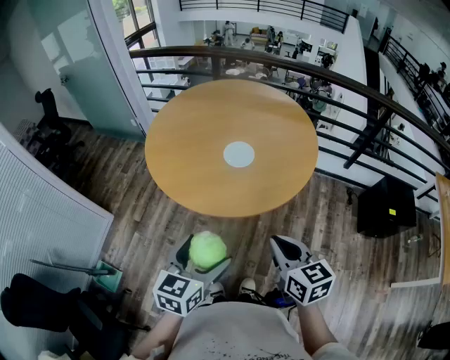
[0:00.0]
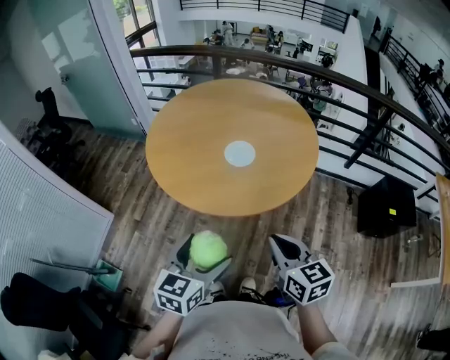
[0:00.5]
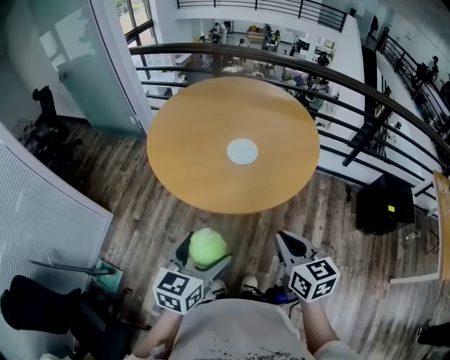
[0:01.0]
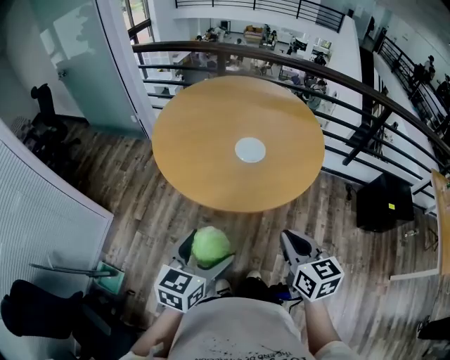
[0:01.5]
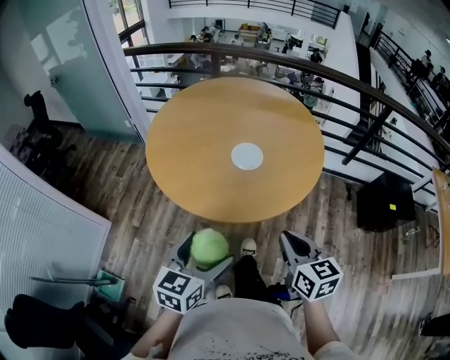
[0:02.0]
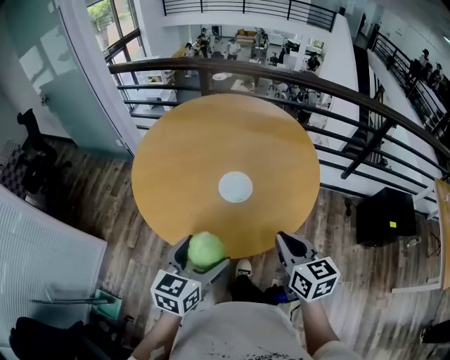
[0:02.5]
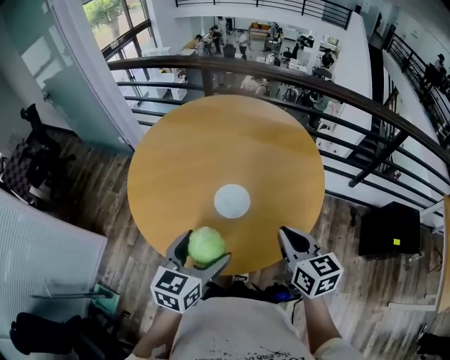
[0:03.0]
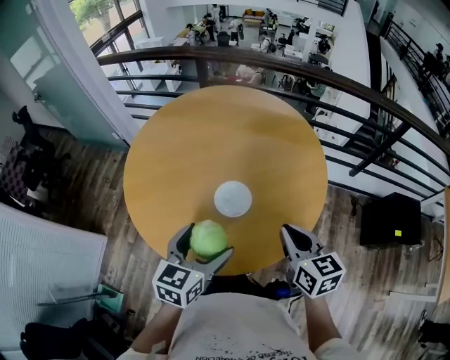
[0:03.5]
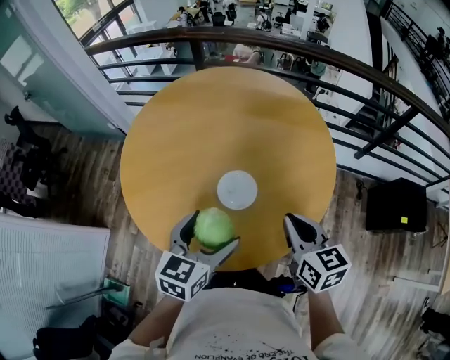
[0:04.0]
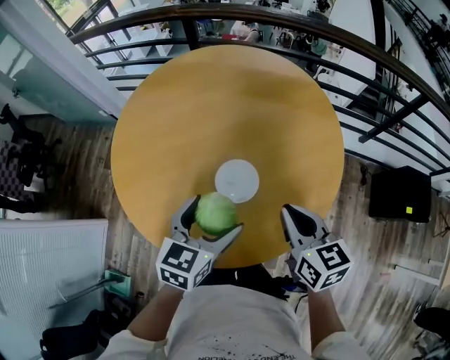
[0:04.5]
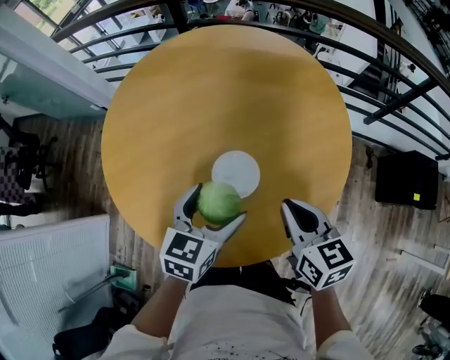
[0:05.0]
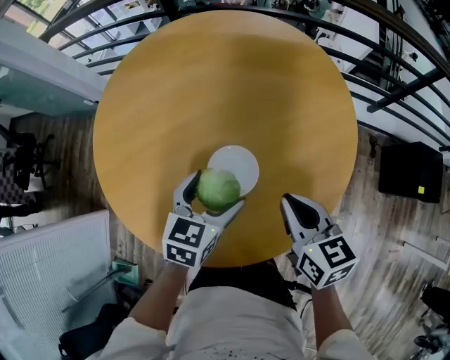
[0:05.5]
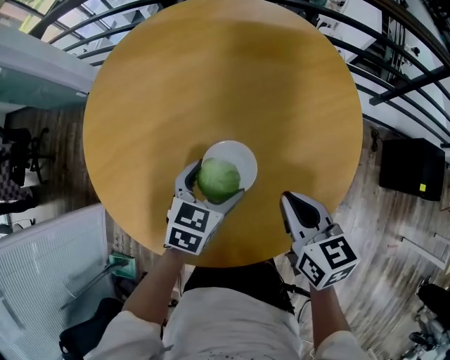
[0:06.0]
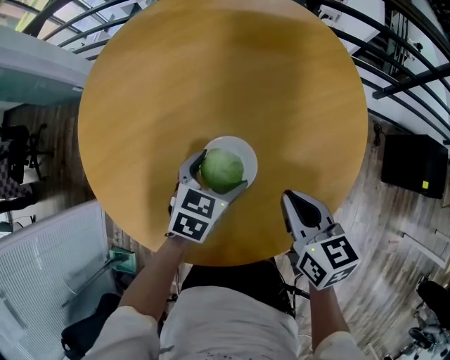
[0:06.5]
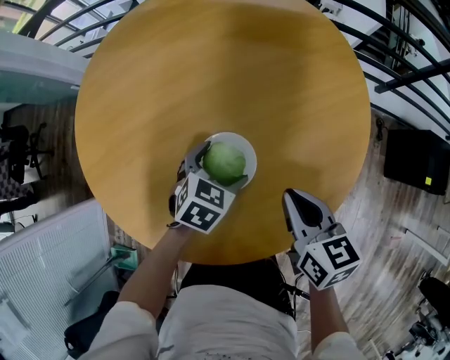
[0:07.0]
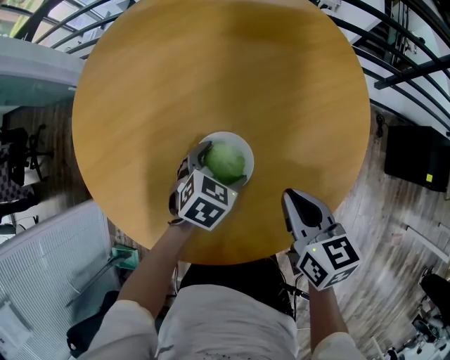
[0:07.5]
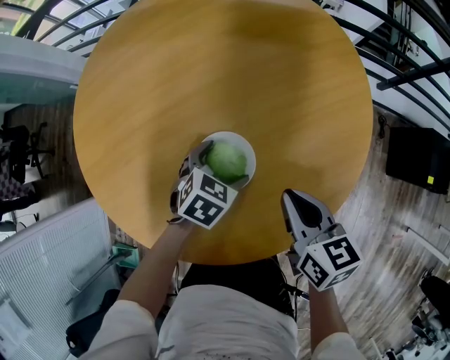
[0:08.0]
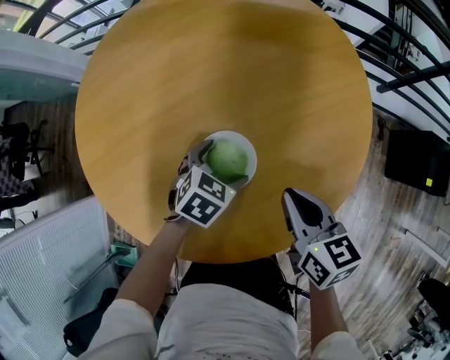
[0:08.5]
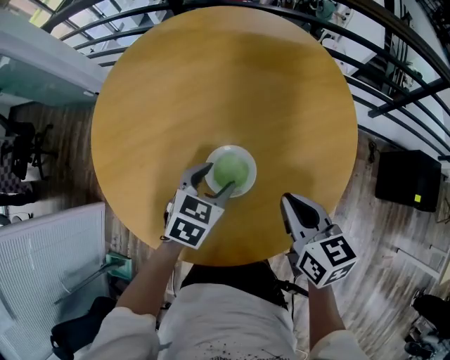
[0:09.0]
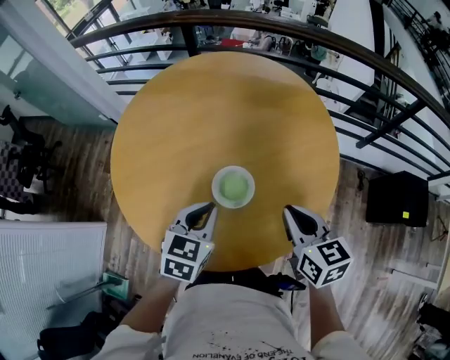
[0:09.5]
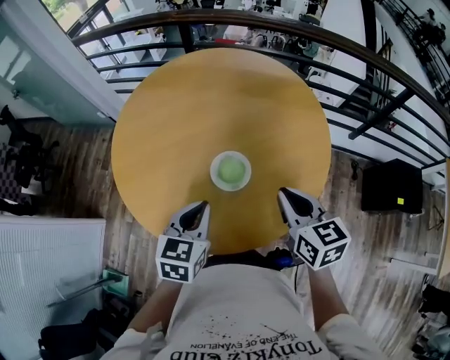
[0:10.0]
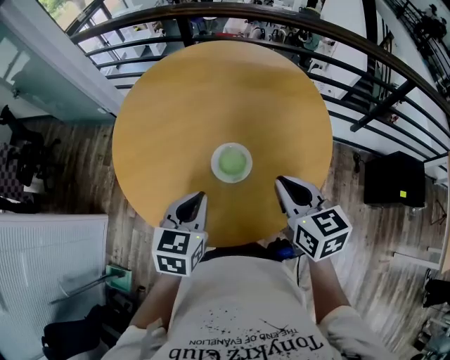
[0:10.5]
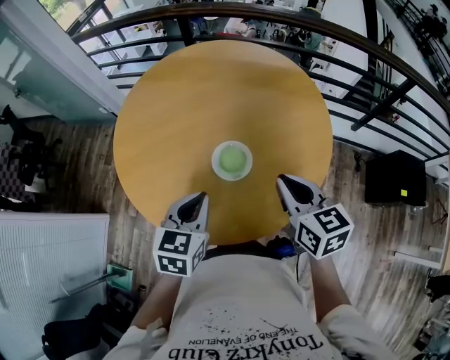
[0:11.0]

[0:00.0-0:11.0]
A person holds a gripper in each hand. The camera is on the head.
0:00.0 to 0:02.0: The right gripper changes place by about 5 cm. The left gripper goes some 5 cm to the left.
0:02.0 to 0:03.5: The two grippers go some 25 cm forward.
0:03.5 to 0:05.5: The left gripper is displaced forward and downward by roughly 20 cm. Meanwhile the right gripper heads downward and forward, covering some 15 cm.
0:05.5 to 0:07.5: The right gripper travels downward by some 5 cm; the left gripper shifts about 15 cm downward, and rotates some 30 degrees.
0:07.5 to 0:09.0: The left gripper is displaced upward by some 10 cm, and closes. Meanwhile the right gripper is displaced upward by about 5 cm.
0:09.0 to 0:11.0: The left gripper shifts approximately 20 cm upward and backward, turns by some 20 degrees, and closes its fingers. The right gripper goes some 10 cm upward and backward.

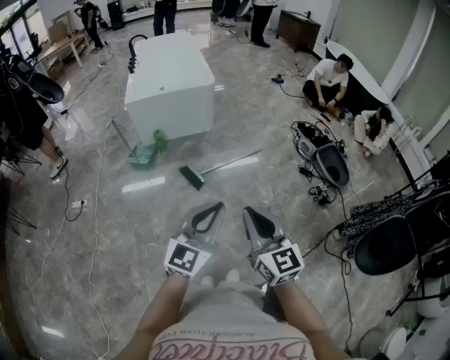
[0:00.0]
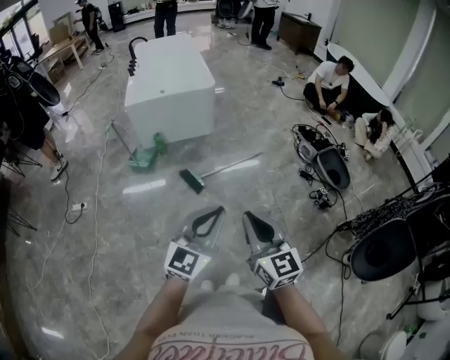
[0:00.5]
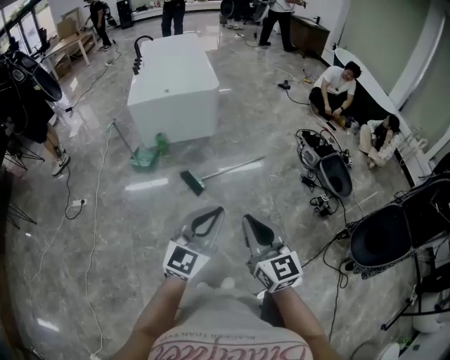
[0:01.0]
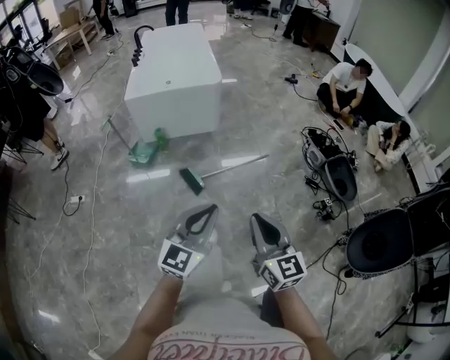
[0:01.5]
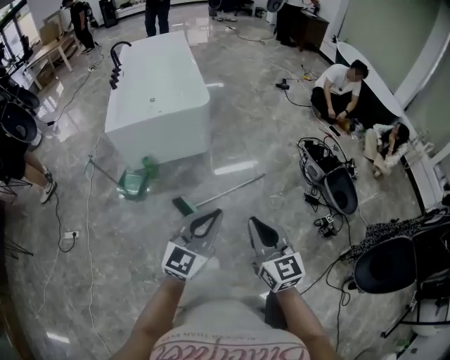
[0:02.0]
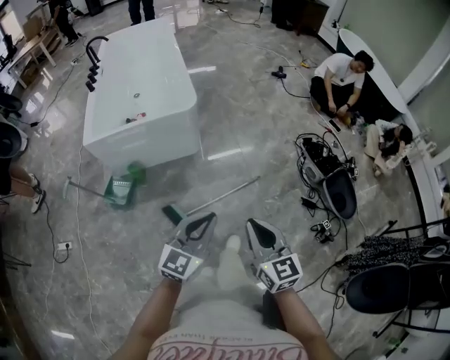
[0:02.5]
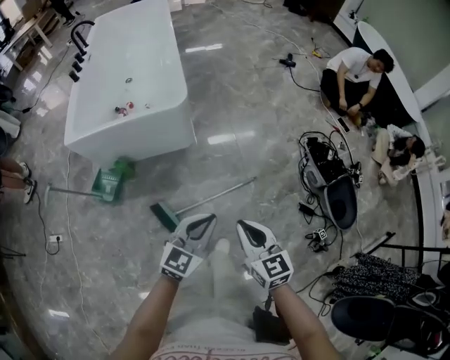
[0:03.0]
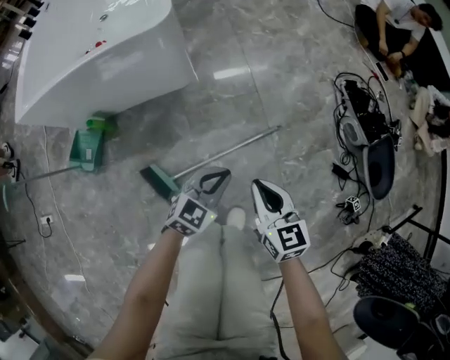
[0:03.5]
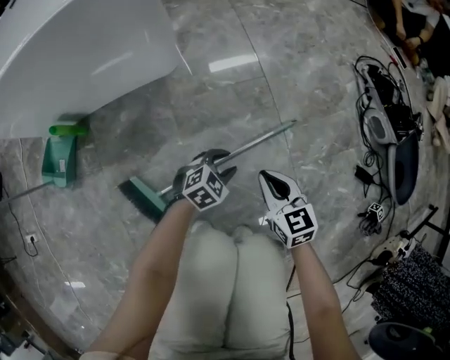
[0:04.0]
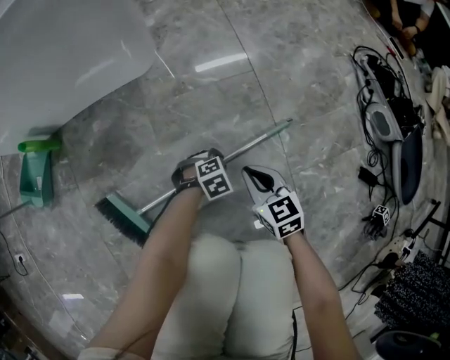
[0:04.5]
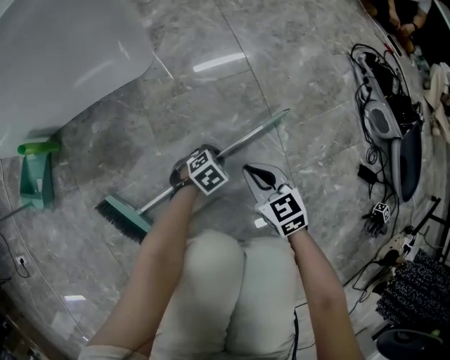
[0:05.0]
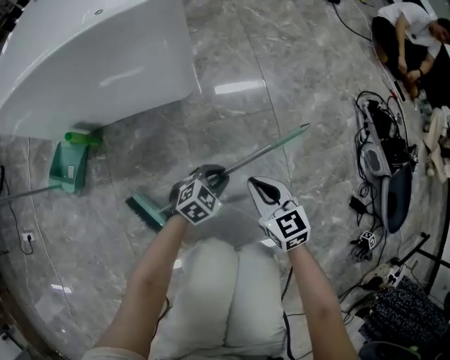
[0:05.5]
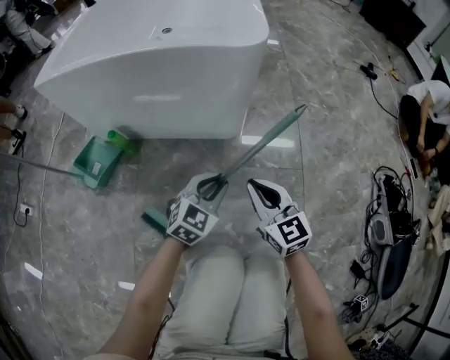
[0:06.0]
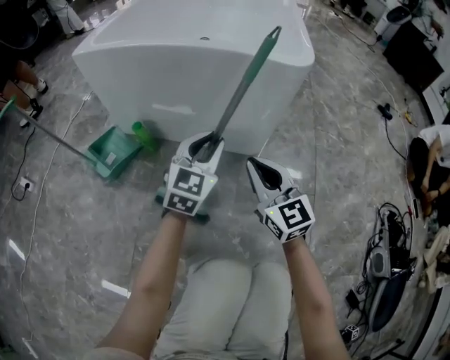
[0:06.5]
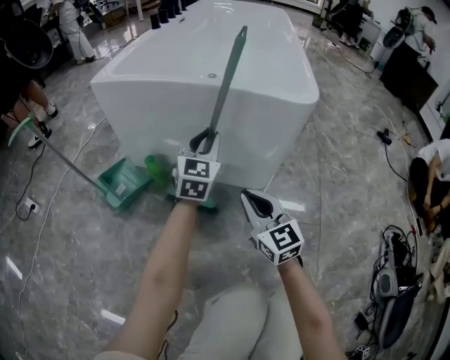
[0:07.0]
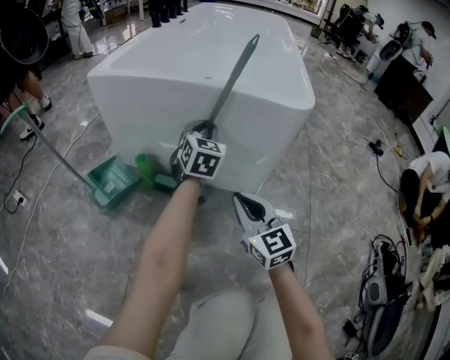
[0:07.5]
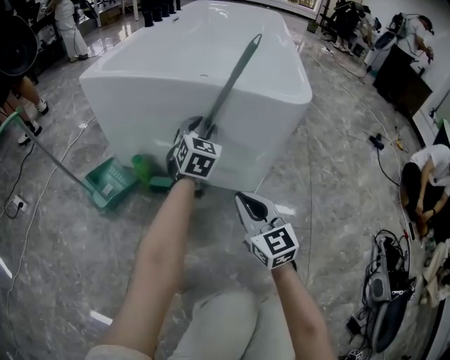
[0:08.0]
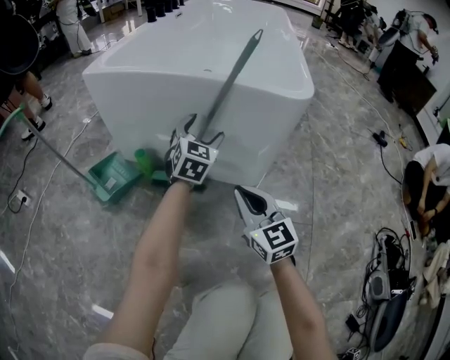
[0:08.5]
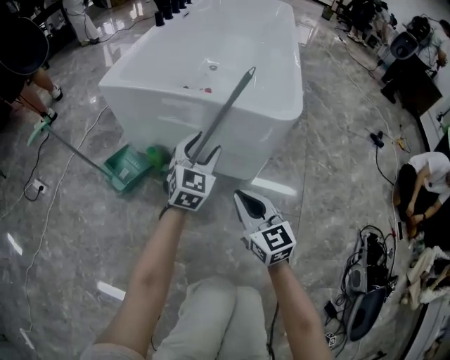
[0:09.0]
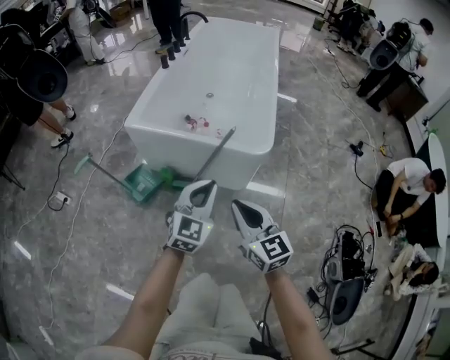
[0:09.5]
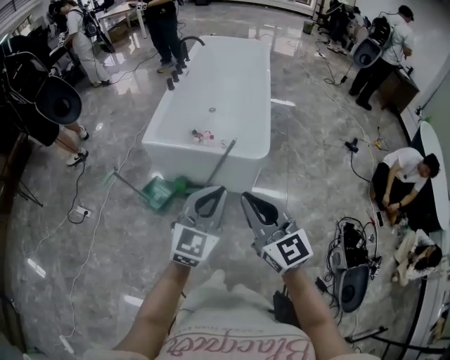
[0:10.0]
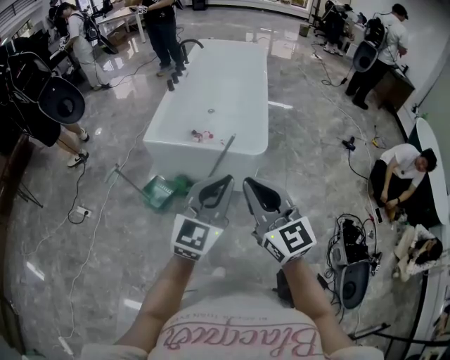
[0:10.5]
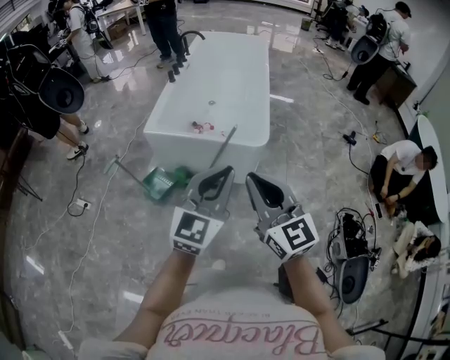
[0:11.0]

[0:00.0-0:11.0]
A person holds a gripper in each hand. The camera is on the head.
0:00.0 to 0:02.0: The two grippers go some 25 cm forward.
0:02.0 to 0:03.5: Both grippers move downward and forward, roughly 50 cm. The left gripper rotates roughly 30 degrees; the right gripper swivels roughly 20 degrees.
0:03.5 to 0:05.5: The right gripper goes approximately 20 cm downward and forward, while the left gripper is displaced downward by roughly 25 cm.
0:05.5 to 0:07.5: The left gripper shifts by roughly 50 cm, and tips its fingers upward by some 30 degrees; the right gripper changes place by roughly 30 cm, and swivels about 30 degrees.
0:07.5 to 0:09.0: The right gripper shifts some 10 cm upward, while the left gripper travels backward and upward by about 15 cm, and opens.
0:09.0 to 0:11.0: The left gripper travels upward and backward by about 50 cm, rotates approximately 20 degrees, and closes up. Meanwhile the right gripper heads upward, covering roughly 50 cm.

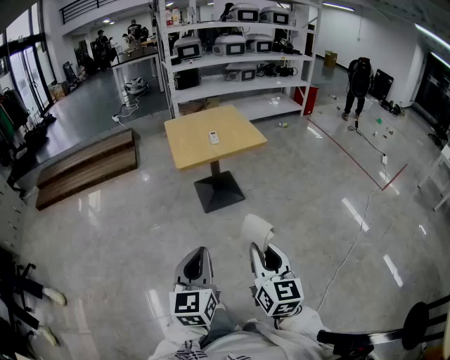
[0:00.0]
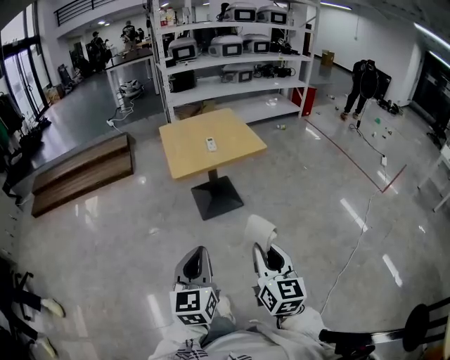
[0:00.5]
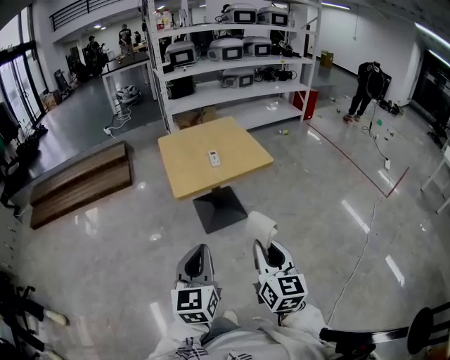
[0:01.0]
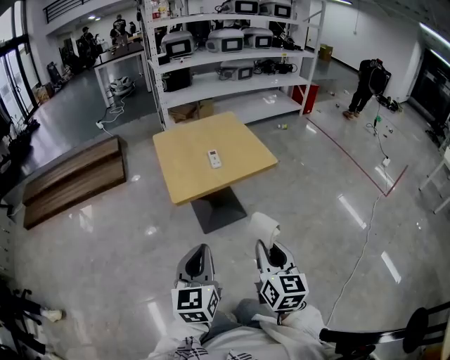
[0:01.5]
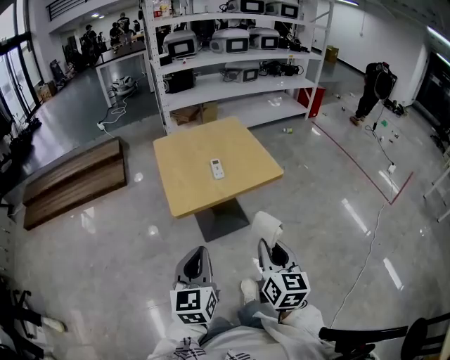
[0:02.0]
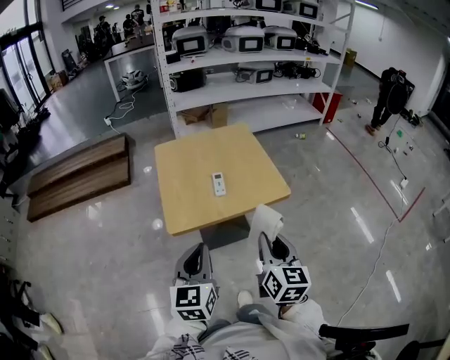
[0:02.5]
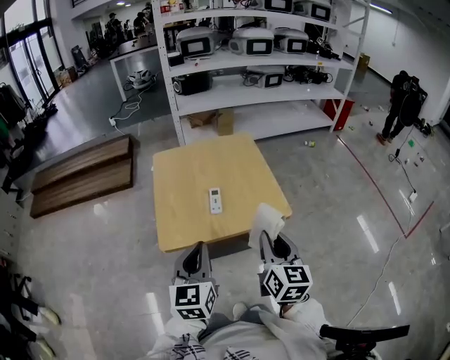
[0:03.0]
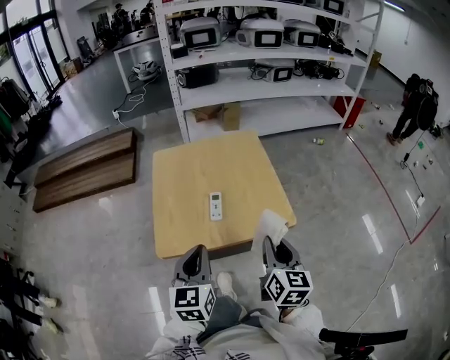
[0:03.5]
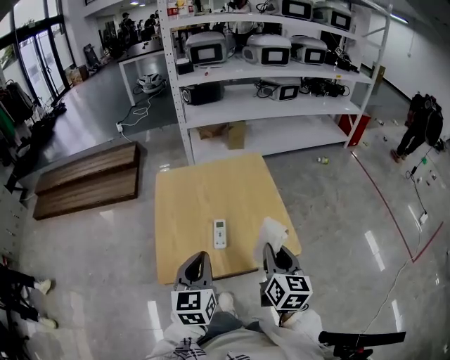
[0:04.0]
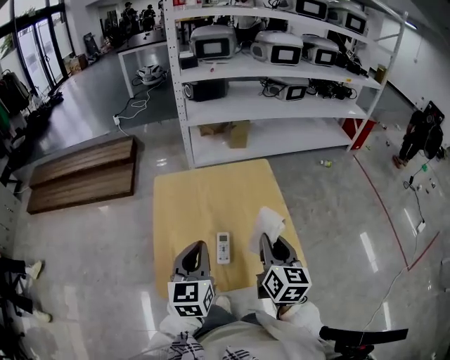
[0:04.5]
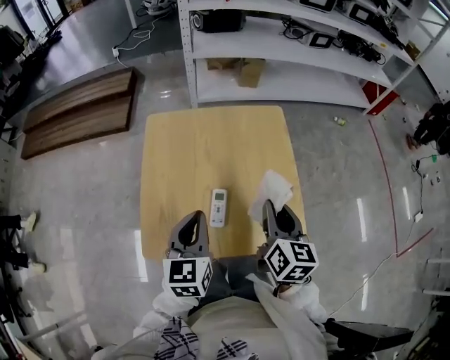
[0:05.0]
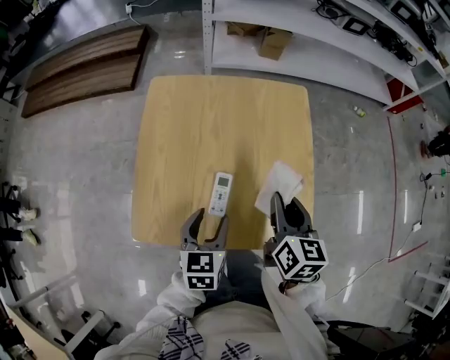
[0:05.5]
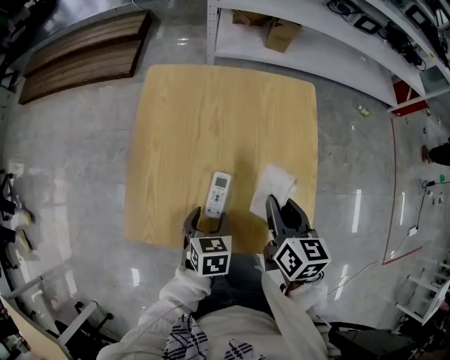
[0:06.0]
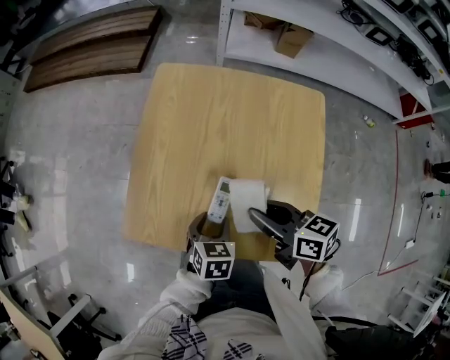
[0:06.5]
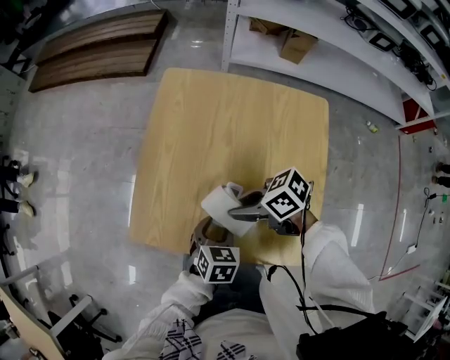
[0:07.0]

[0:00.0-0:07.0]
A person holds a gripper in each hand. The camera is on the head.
0:00.0 to 0:02.0: Both grippers move forward, approximately 35 cm.
0:02.0 to 0:03.5: Both grippers travel together forward, roughly 25 cm.
0:03.5 to 0:05.0: The grippers both shift forward by approximately 20 cm.
0:05.0 to 0:07.0: Both grippers move downward, about 15 cm. The left gripper tilts its fingers roughly 40 degrees downward, and opens its fingers, while the right gripper turns by about 100 degrees.
